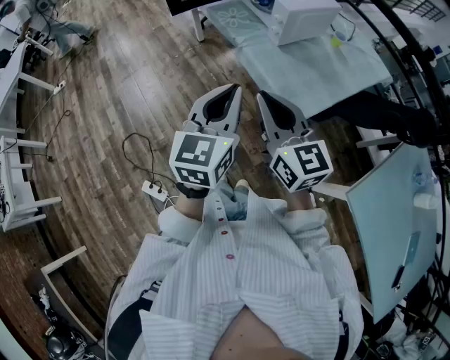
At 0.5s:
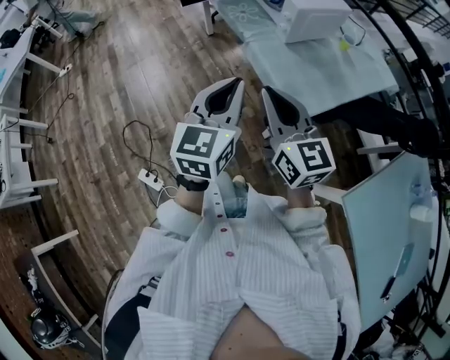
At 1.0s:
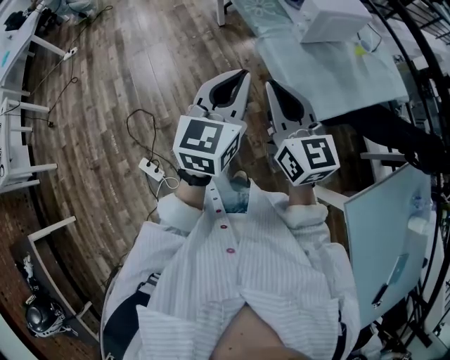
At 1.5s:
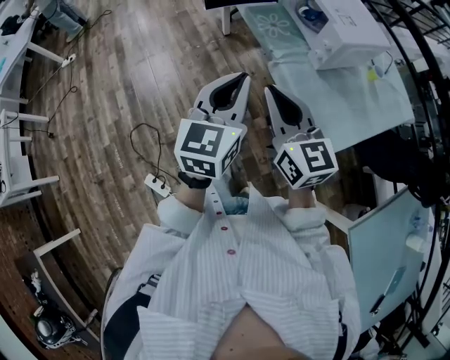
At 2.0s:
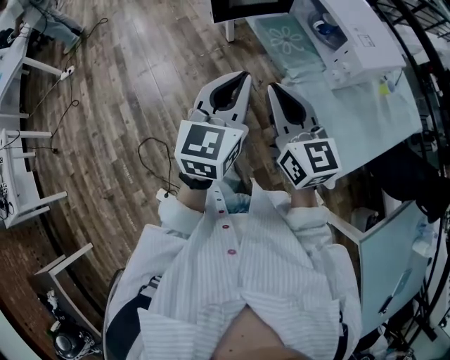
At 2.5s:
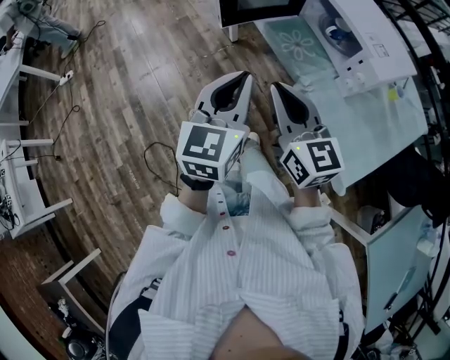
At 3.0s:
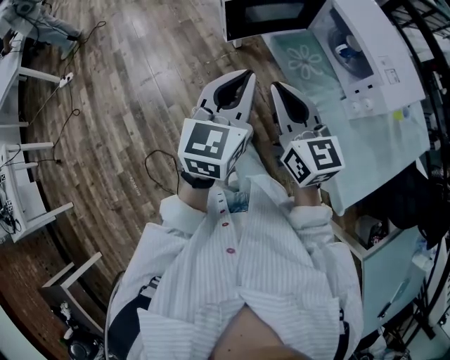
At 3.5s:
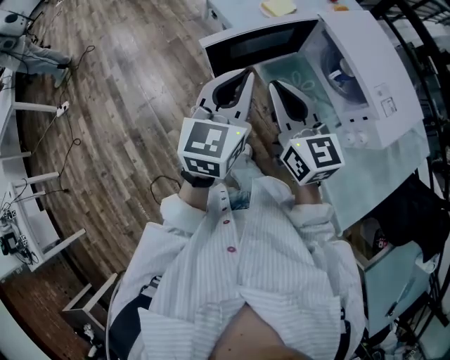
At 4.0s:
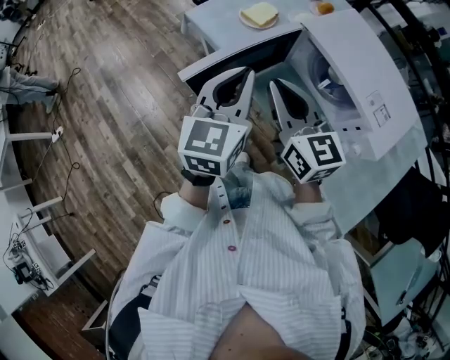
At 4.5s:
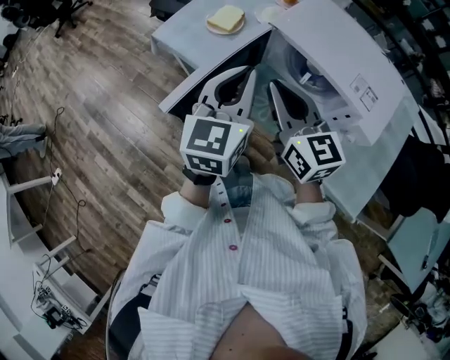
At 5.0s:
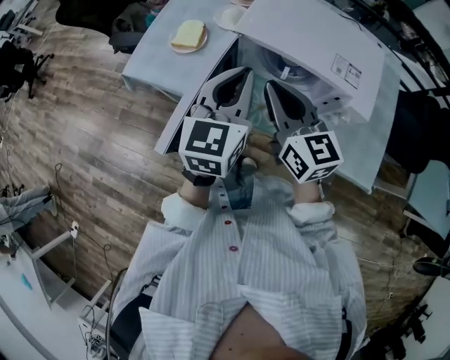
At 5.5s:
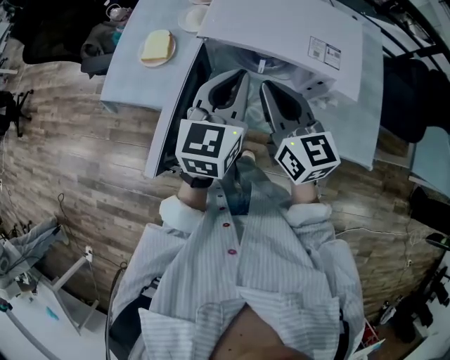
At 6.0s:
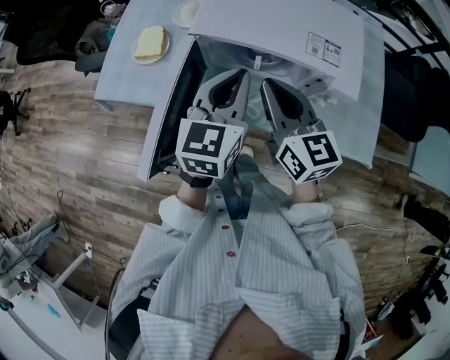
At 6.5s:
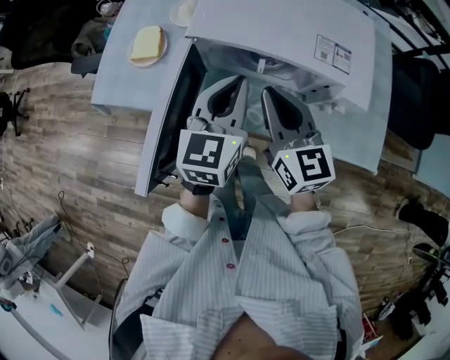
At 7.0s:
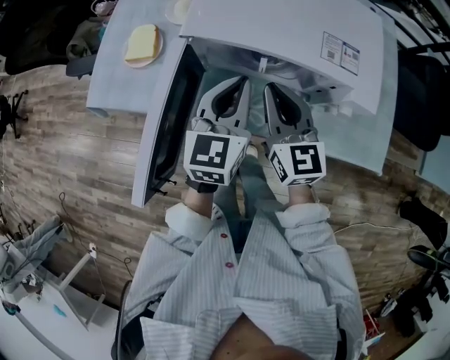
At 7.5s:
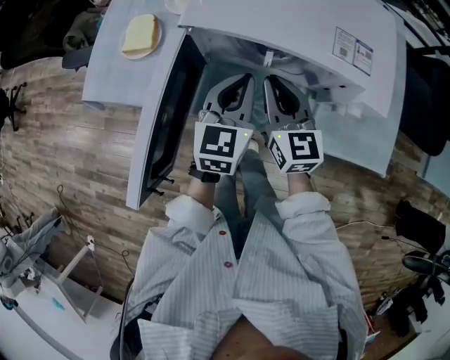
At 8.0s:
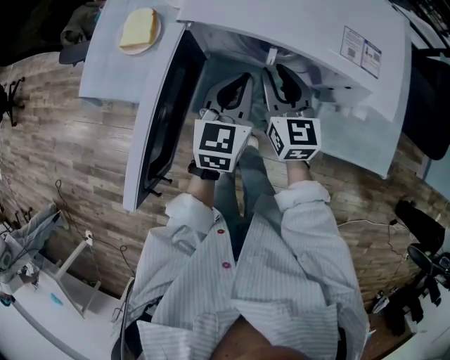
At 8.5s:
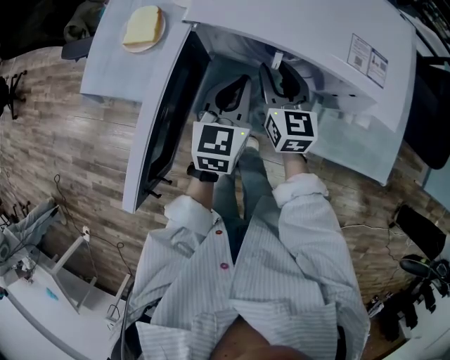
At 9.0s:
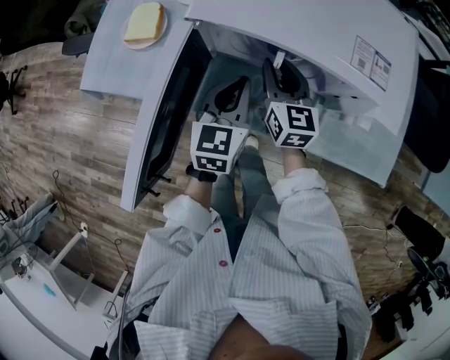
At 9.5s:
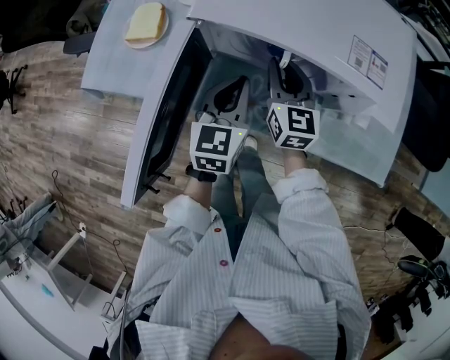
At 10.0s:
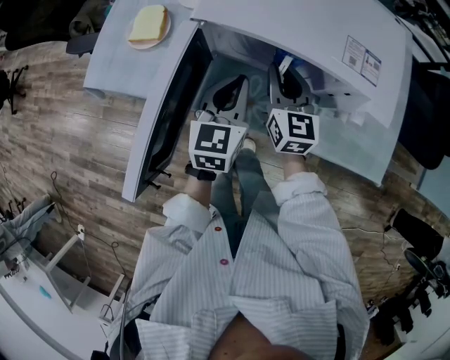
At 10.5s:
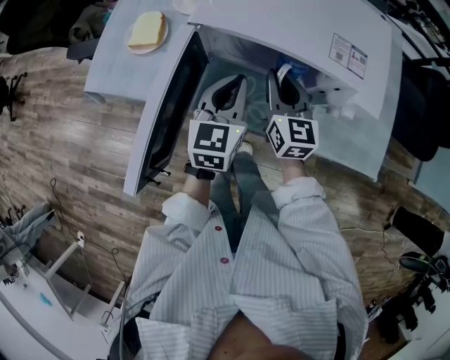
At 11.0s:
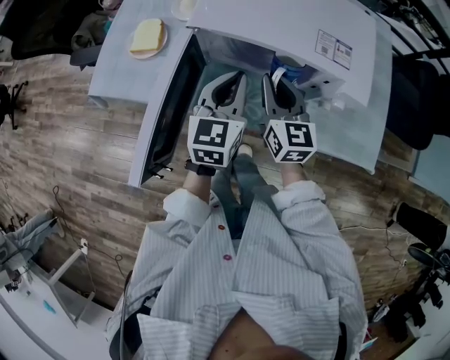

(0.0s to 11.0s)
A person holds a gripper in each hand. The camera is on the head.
0.0s - 2.0s: The grippers both shift forward and to the left by about 30 cm.
2.0s - 3.5s: The grippers both shift forward by roughly 30 cm.
3.5s - 5.5s: The right gripper moves some 20 cm, and turns by some 50 degrees. Meanwhile the left gripper moves roughly 25 cm, and rotates approximately 50 degrees.
5.5s - 7.5s: The right gripper is displaced downward and forward by some 15 cm. Meanwhile the left gripper is displaced downward by roughly 15 cm.
7.5s - 9.0s: The right gripper heads forward and downward, covering some 10 cm.
9.0s - 11.0s: The right gripper heads upward and backward, covering roughly 10 cm, while the left gripper moves upward, roughly 10 cm.

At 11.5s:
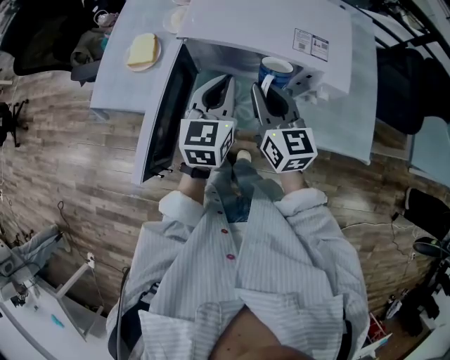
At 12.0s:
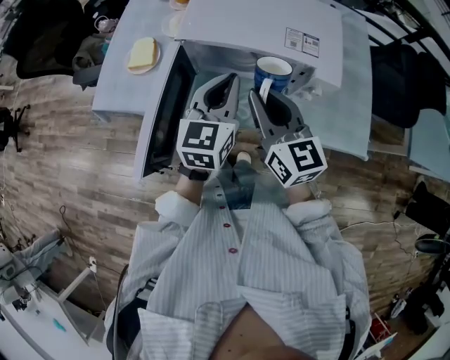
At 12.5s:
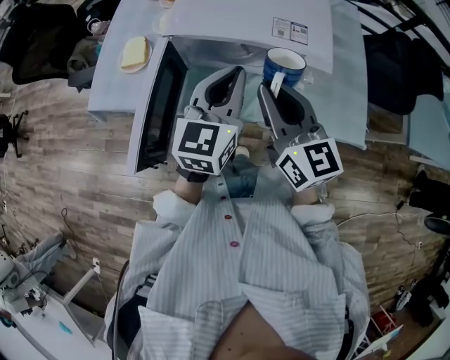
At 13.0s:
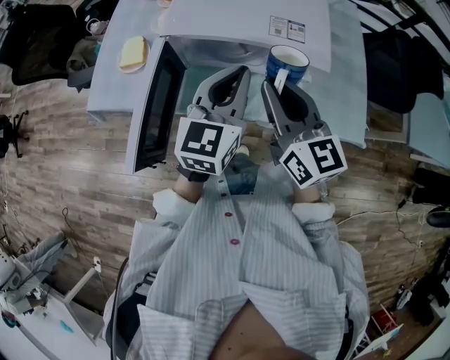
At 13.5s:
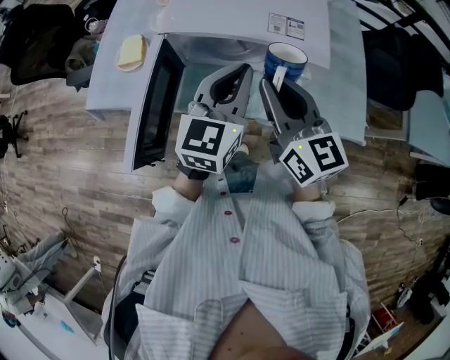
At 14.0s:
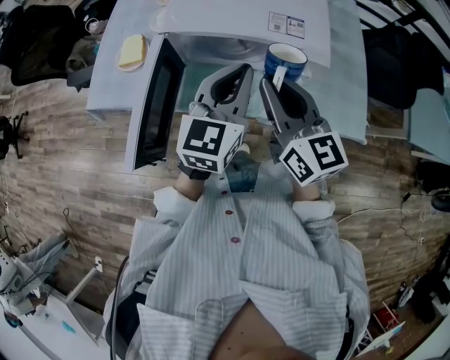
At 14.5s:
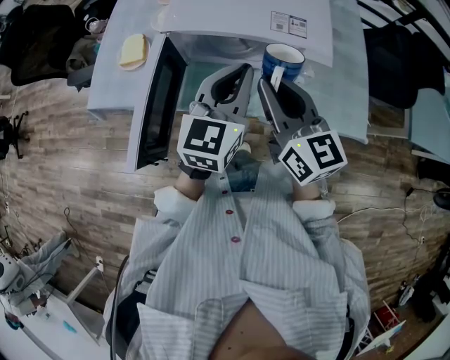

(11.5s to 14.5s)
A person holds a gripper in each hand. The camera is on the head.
11.5s - 13.0s: The left gripper heads upward and to the right, covering approximately 10 cm; the right gripper shifts about 10 cm upward and backward.
13.0s - 14.5s: Both grippers stay about where they are.

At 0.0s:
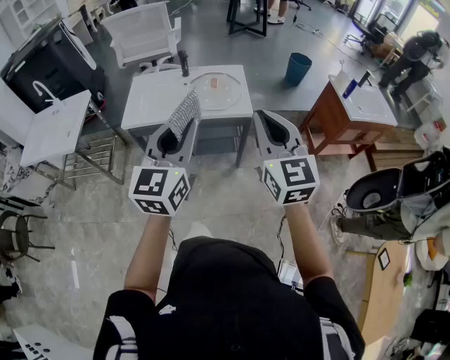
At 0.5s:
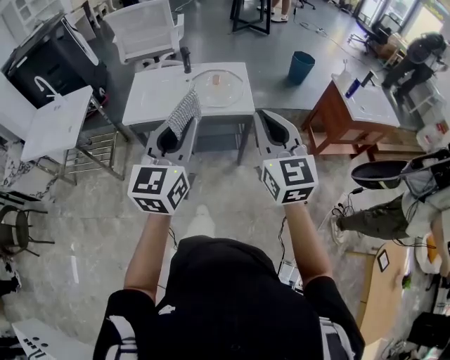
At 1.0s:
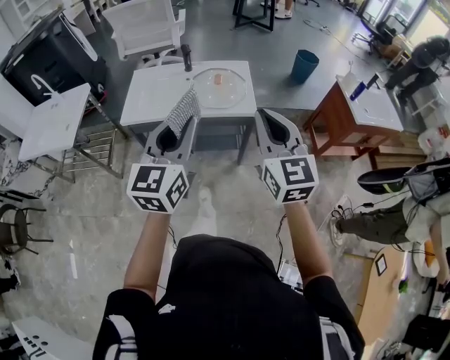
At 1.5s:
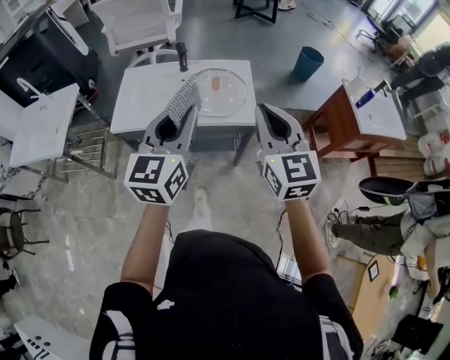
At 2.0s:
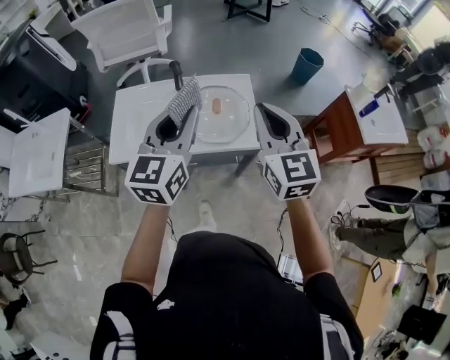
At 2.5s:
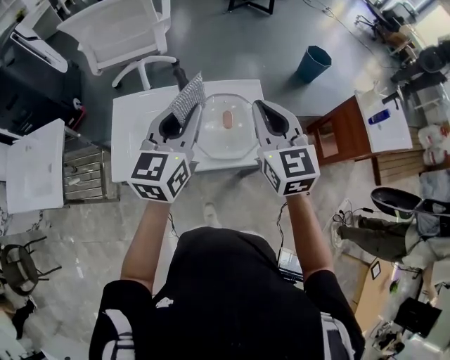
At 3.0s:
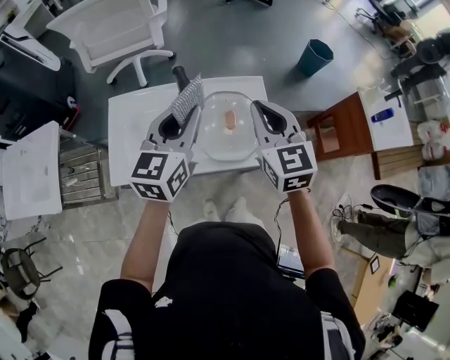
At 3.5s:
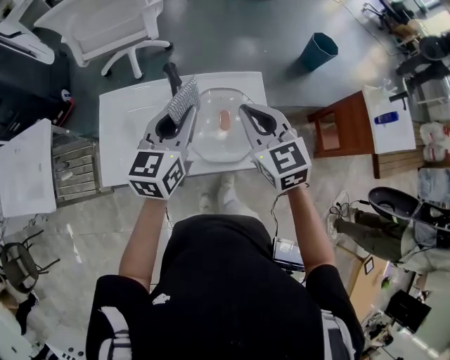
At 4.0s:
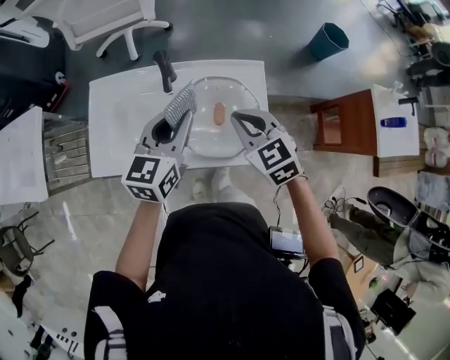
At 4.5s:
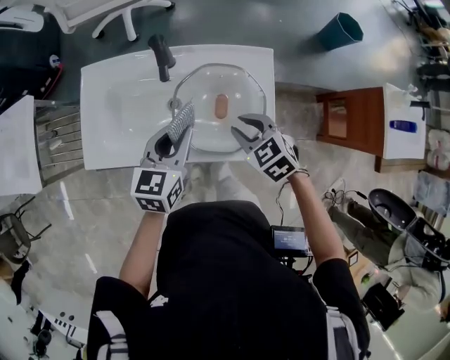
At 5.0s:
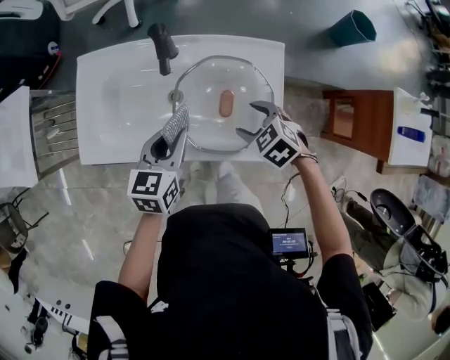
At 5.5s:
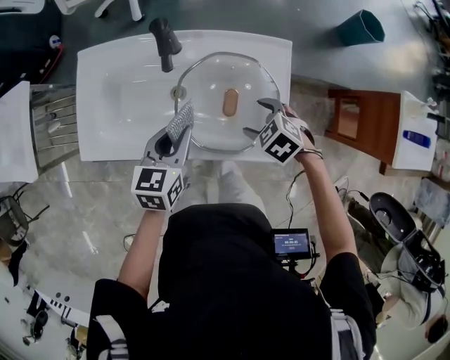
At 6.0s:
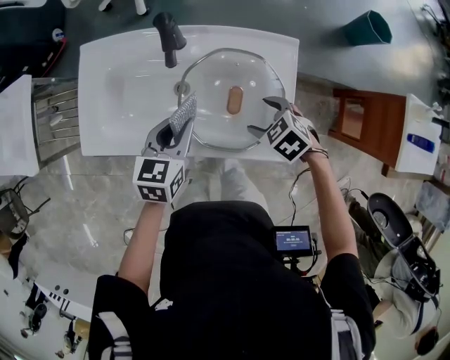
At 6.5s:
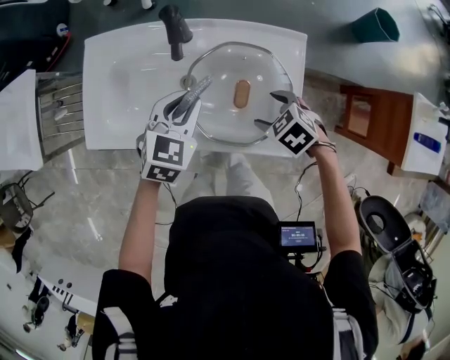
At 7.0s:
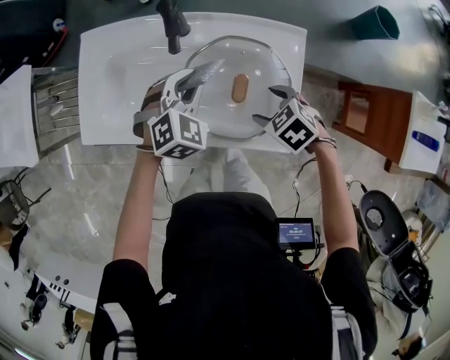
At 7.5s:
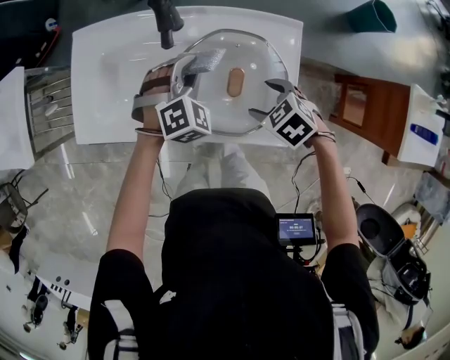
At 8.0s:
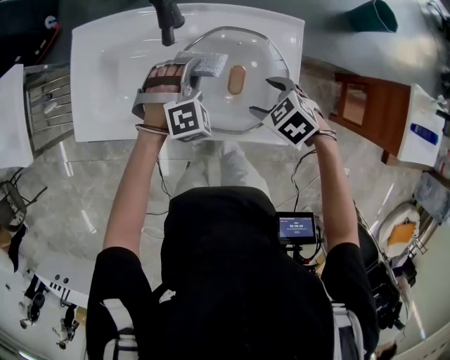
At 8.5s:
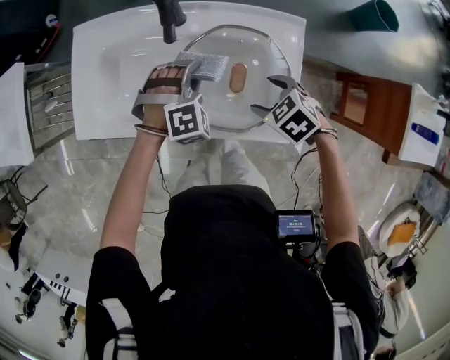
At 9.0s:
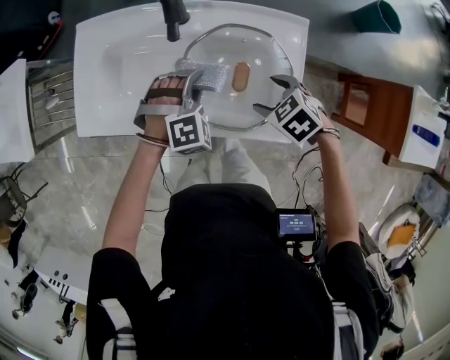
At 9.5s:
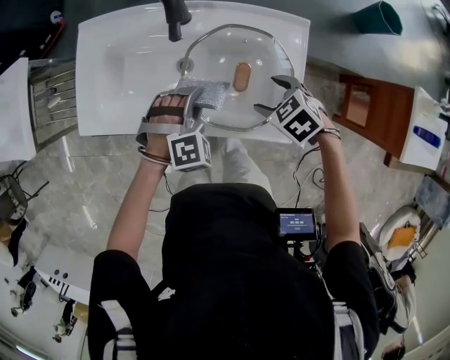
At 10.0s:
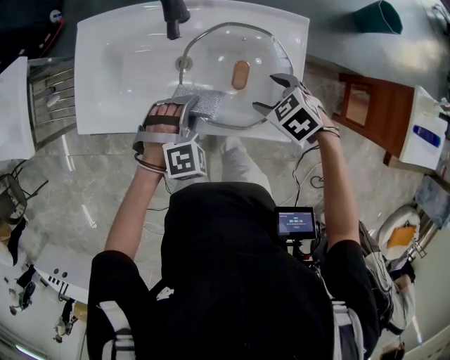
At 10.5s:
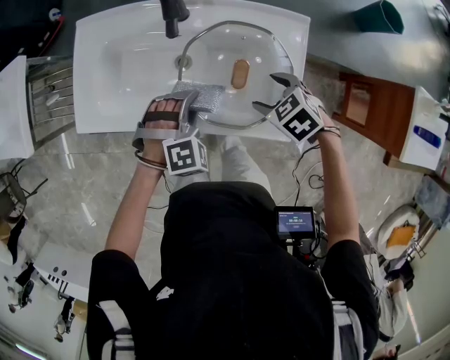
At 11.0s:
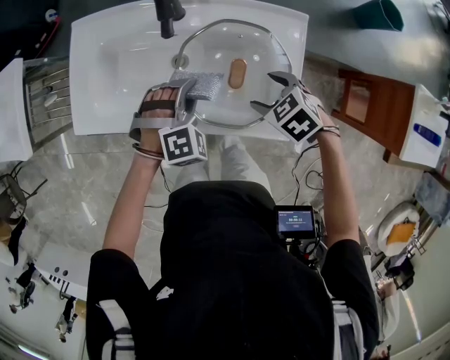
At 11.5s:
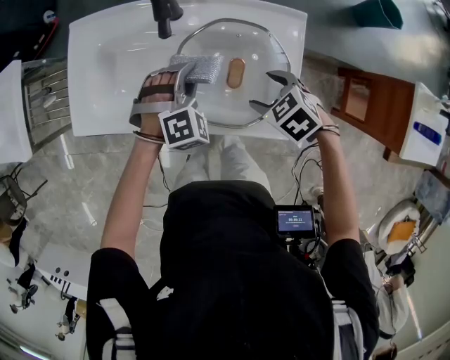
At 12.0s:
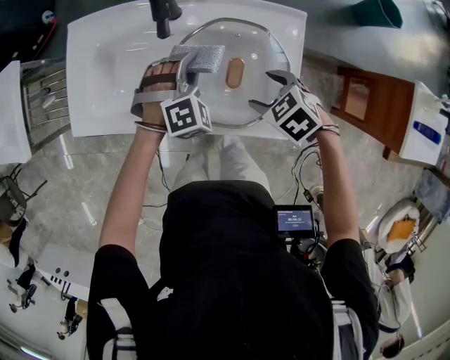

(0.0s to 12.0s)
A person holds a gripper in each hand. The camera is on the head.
0.0s - 2.0s: The two grippers go about 30 cm forward.
2.0s - 4.0s: The left gripper heads forward and downward, covering approximately 25 cm, while the right gripper moves downward and forward, approximately 30 cm, and turns by about 40 degrees.
4.0s - 6.0s: Both grippers travel together downward, approximately 20 cm. The right gripper tips its fingers downward by approximately 30 degrees, and opens its fingers. The left gripper rotates some 20 degrees.
6.0s - 8.0s: The left gripper travels to the right, downward and forward by about 10 cm, and twists about 70 degrees clockwise, seen from behind.
8.0s - 10.0s: The left gripper shifts roughly 10 cm backward and to the left.
10.0s - 12.0s: The left gripper goes about 10 cm forward and to the right.

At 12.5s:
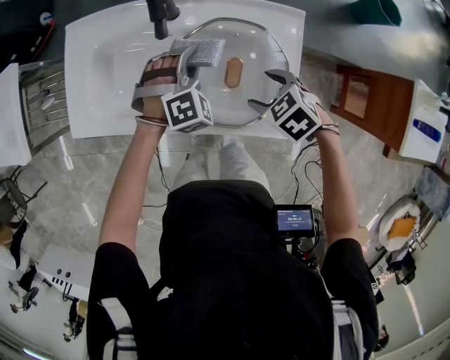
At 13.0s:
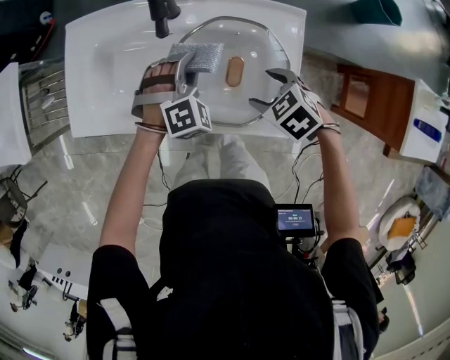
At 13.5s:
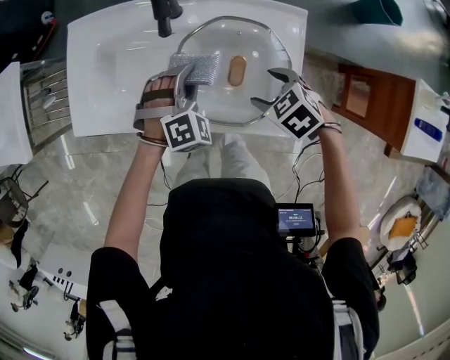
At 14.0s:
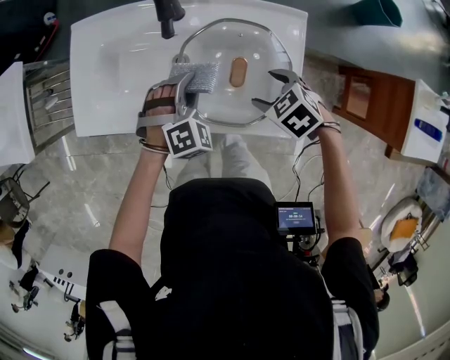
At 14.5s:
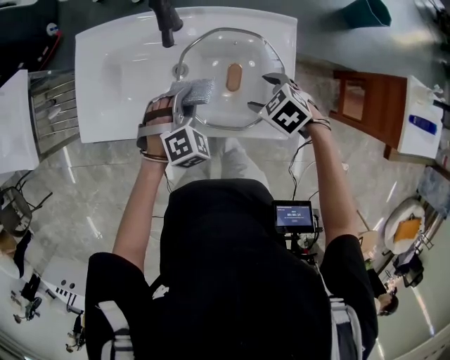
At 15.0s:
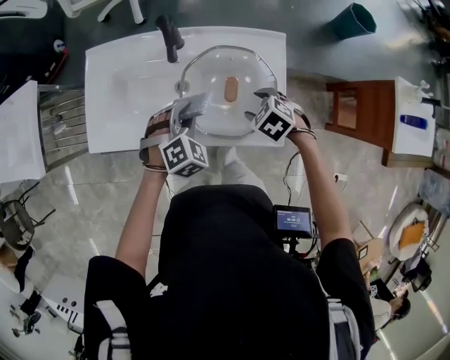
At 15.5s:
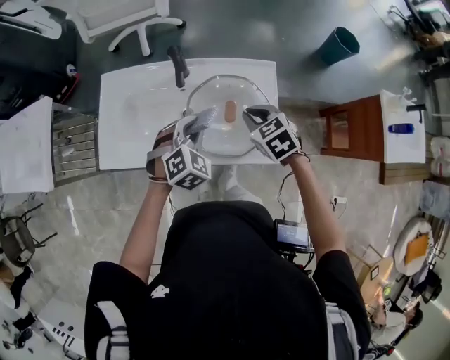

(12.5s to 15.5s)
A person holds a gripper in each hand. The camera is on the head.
12.5s - 14.0s: The left gripper moves about 5 cm.
14.0s - 15.5s: The two grippers go about 10 cm upward. The right gripper turns by some 20 degrees, and closes its fingers.
